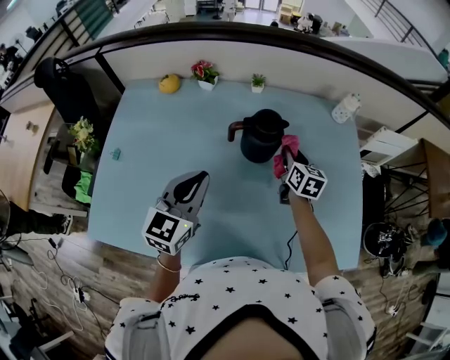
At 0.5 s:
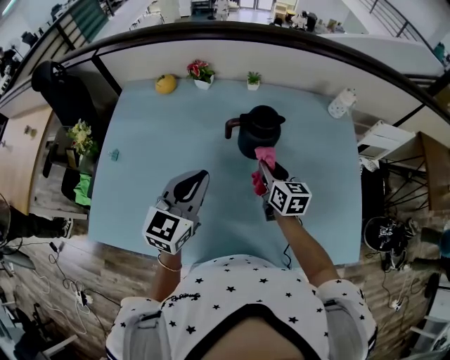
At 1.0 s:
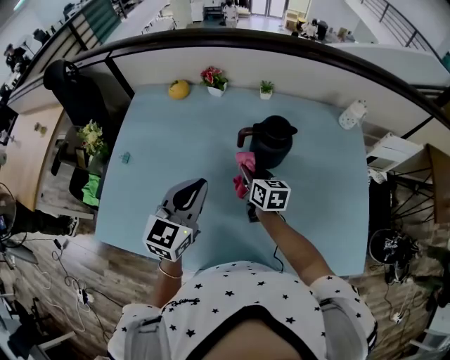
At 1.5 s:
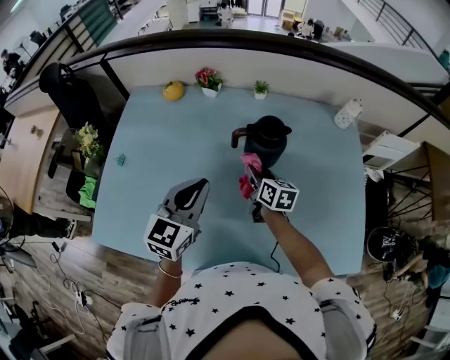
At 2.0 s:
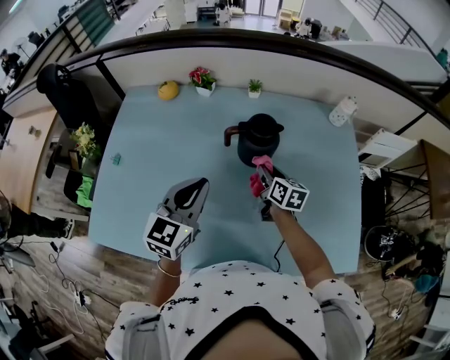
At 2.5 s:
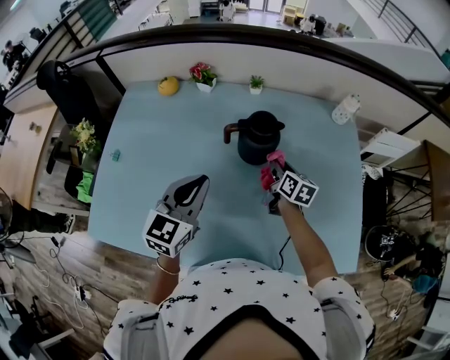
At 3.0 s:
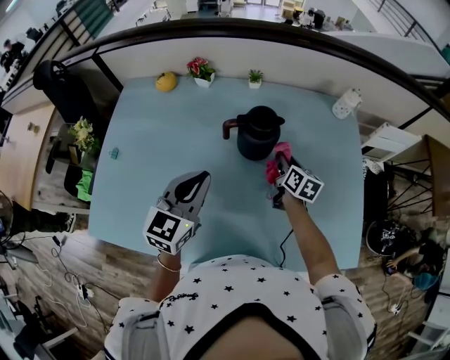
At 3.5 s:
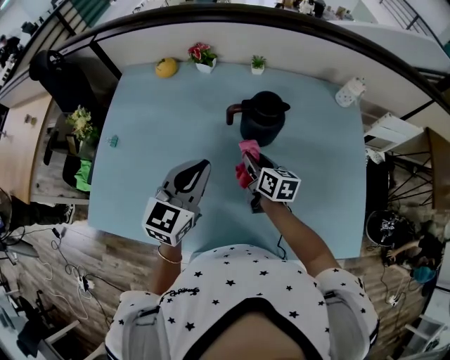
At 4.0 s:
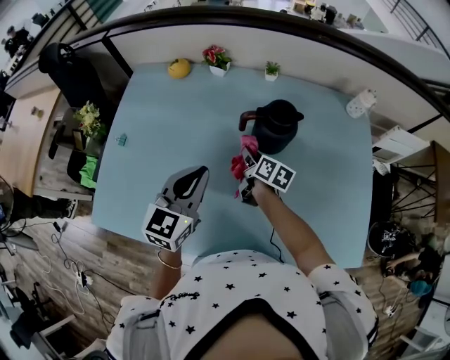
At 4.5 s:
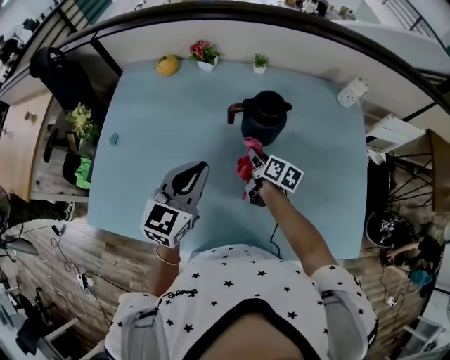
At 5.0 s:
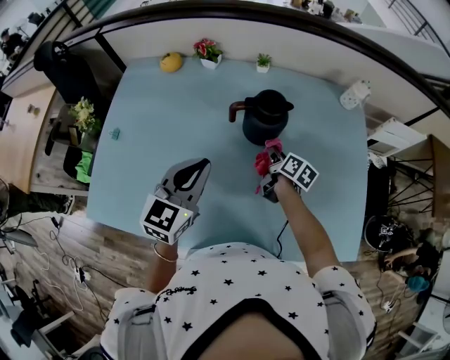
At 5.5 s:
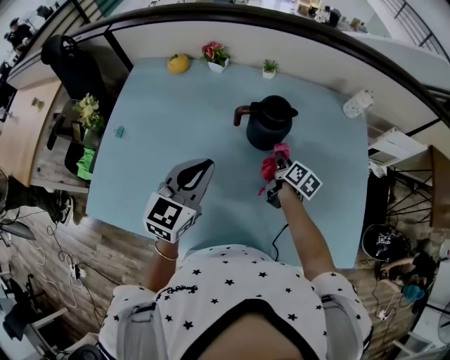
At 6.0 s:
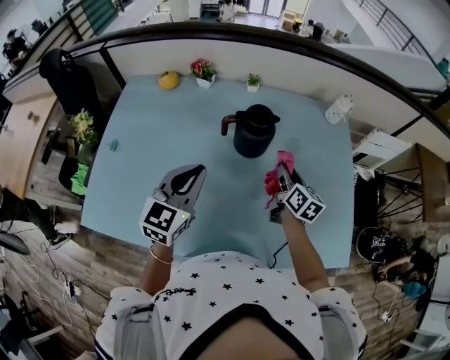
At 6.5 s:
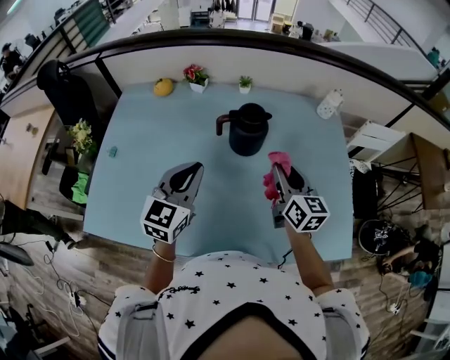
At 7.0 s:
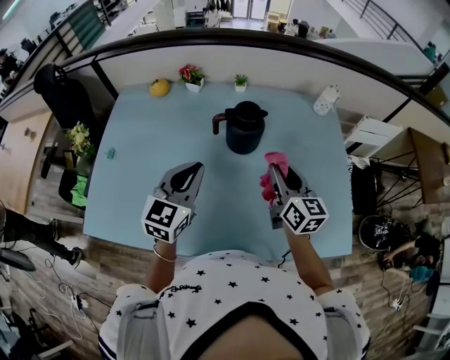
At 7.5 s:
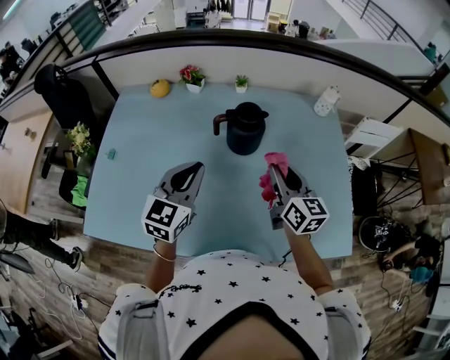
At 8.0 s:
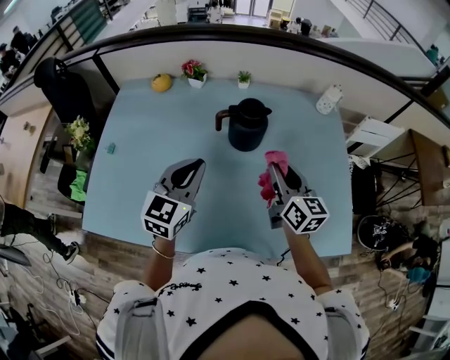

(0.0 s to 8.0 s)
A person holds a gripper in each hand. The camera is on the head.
0.0 s - 2.0 s: The right gripper travels to the left by approximately 5 cm.
2.0 s - 4.0 s: The right gripper shifts about 10 cm to the left.
4.0 s - 6.0 s: The right gripper heads to the right and upward, covering roughly 20 cm, and swivels about 20 degrees.
6.0 s - 8.0 s: The right gripper shifts some 10 cm upward and backward.

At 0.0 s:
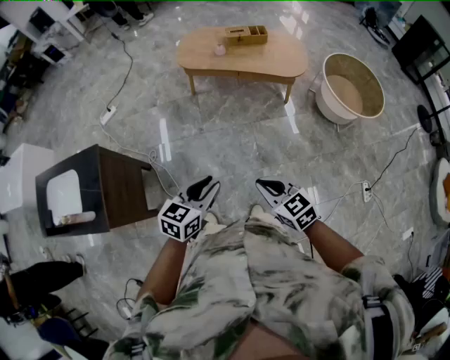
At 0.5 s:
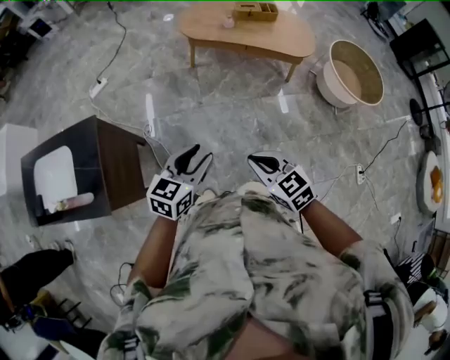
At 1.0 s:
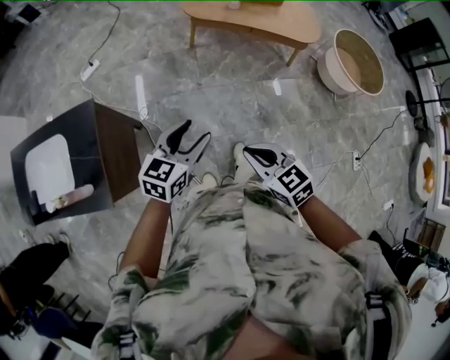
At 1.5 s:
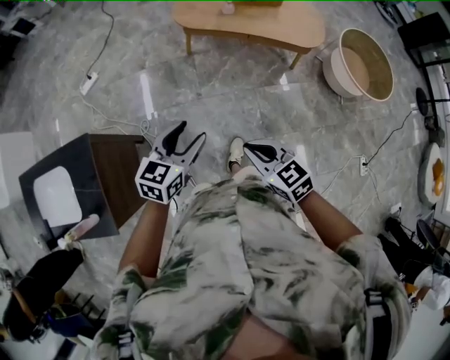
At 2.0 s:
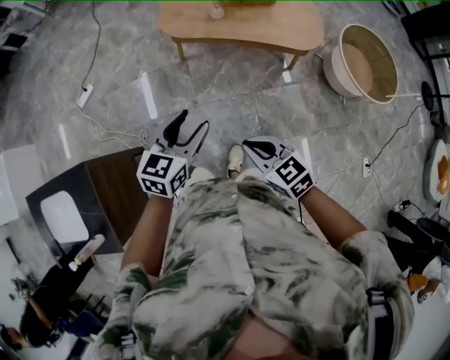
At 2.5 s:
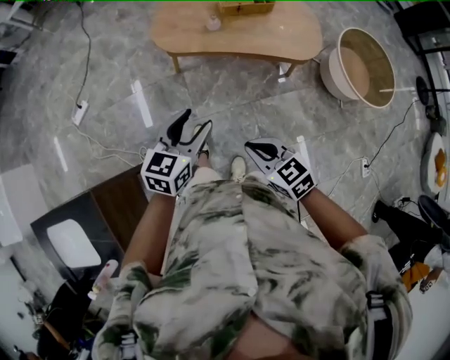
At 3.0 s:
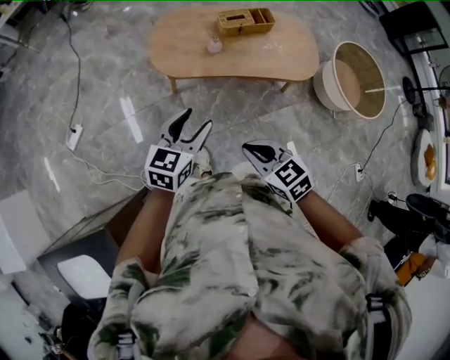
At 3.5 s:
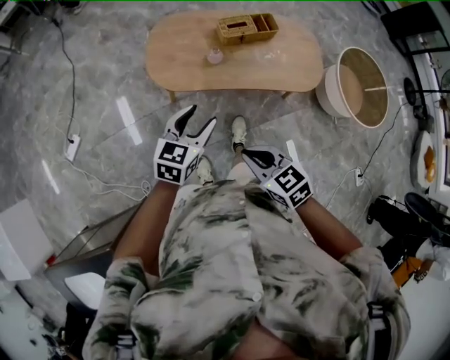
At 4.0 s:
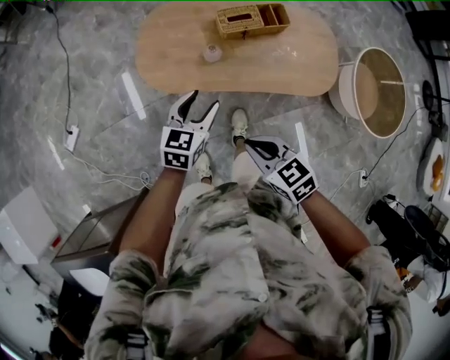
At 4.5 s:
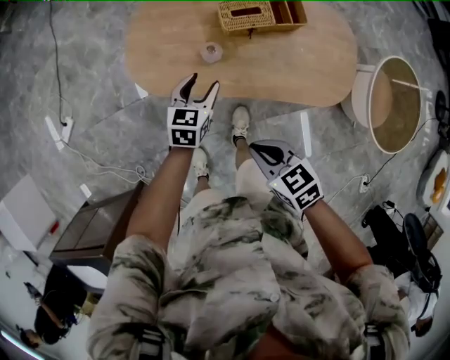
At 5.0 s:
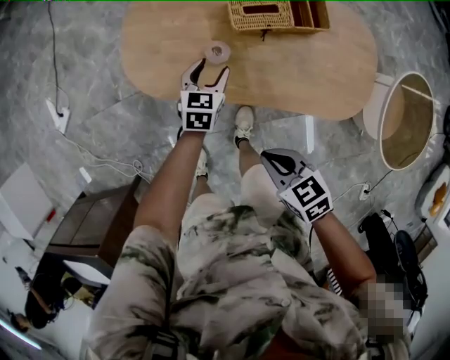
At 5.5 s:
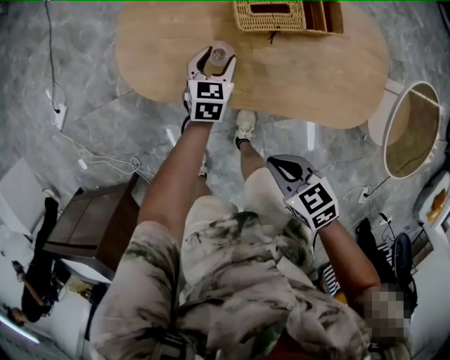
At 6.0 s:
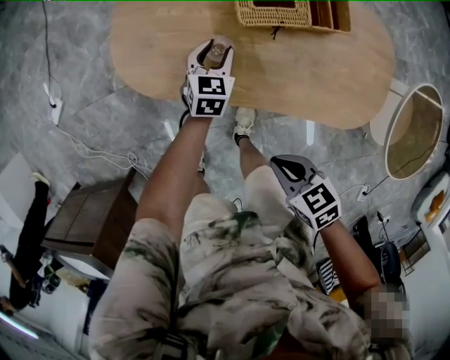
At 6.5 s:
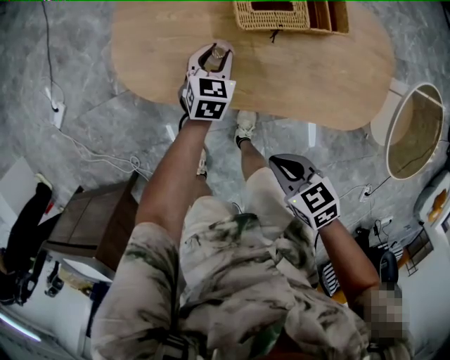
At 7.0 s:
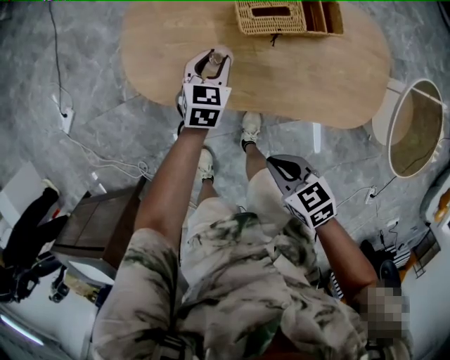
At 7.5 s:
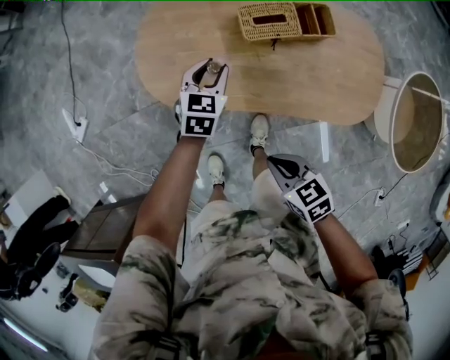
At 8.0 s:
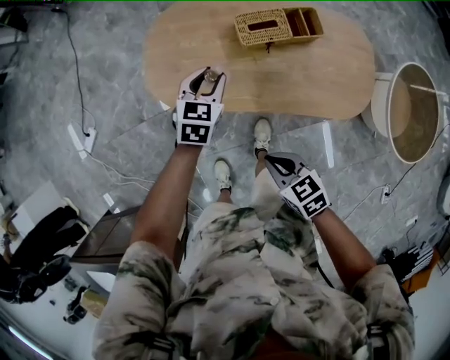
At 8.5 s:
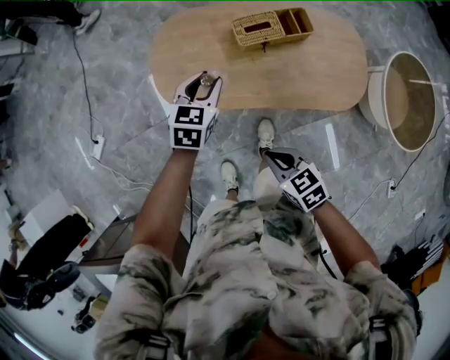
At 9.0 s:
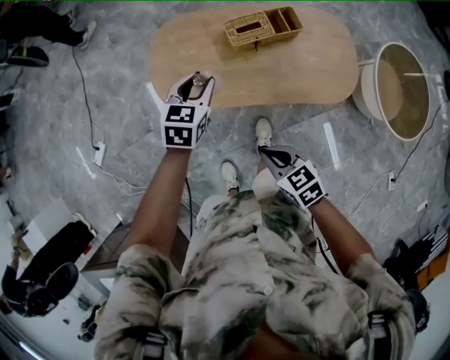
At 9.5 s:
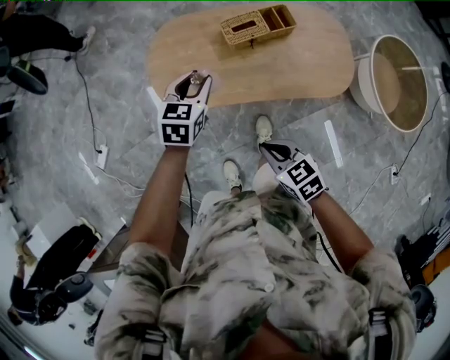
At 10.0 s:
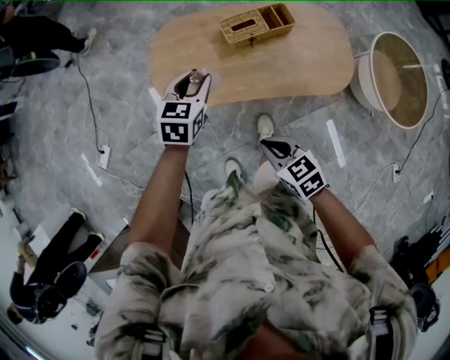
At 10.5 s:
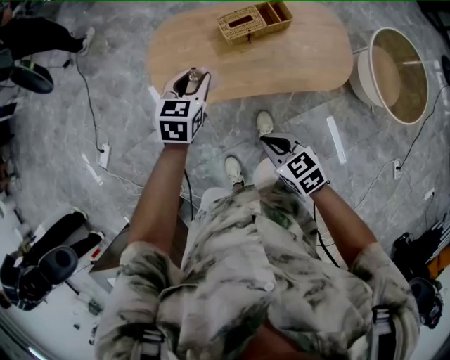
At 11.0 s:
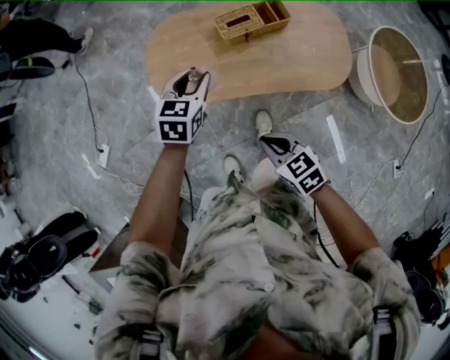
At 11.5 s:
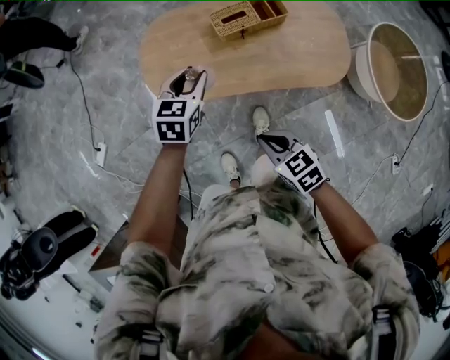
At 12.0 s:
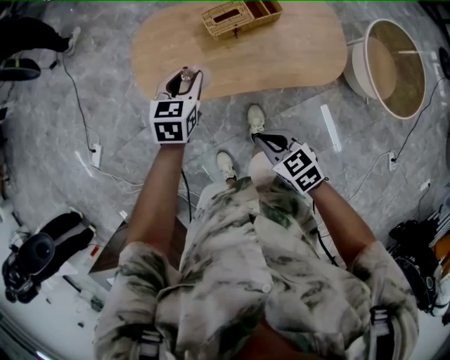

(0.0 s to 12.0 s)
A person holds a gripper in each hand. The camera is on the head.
0.0 s - 2.0 s: The two grippers go roughly 40 cm forward. The left gripper opens up.
2.0 s - 4.0 s: The pair of grippers is taken forward, roughly 50 cm.
4.0 s - 6.0 s: The left gripper moves downward, forward and to the right, some 40 cm. The right gripper heads downward and to the right, covering some 30 cm, and turns by some 20 degrees.
6.0 s - 8.0 s: The right gripper moves upward and to the left, roughly 15 cm. Meanwhile the left gripper shifts about 20 cm upward.
8.0 s - 10.0 s: The grippers both shift upward and backward by about 15 cm.
10.0 s - 12.0 s: The right gripper changes place by roughly 5 cm. The left gripper ends up about 5 cm from where it was.

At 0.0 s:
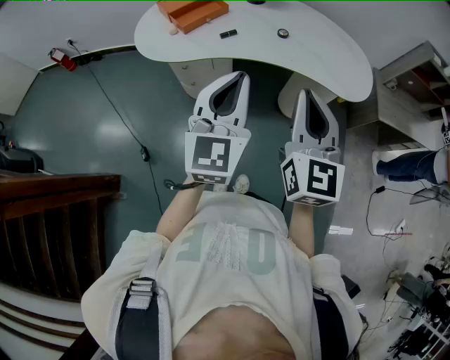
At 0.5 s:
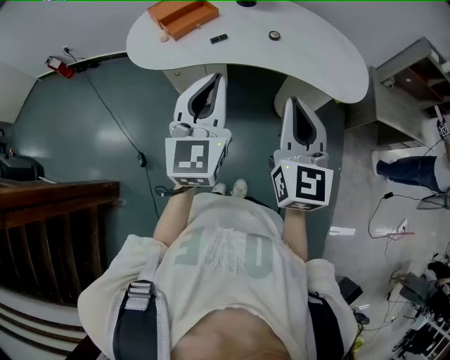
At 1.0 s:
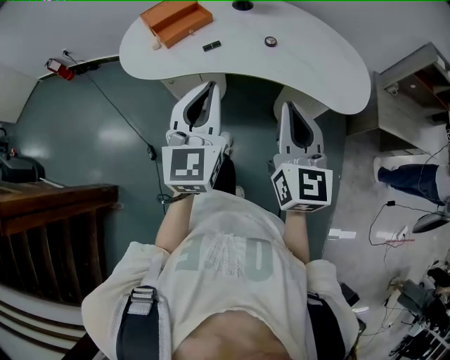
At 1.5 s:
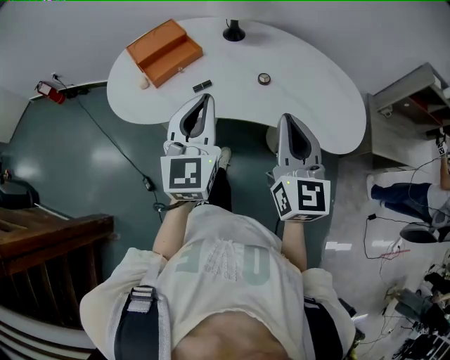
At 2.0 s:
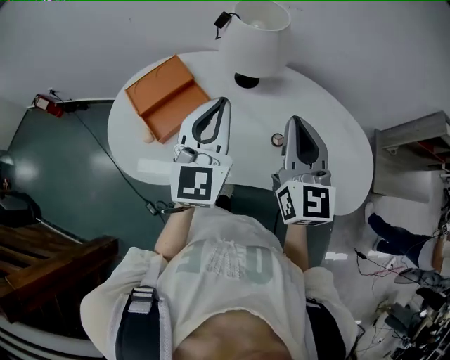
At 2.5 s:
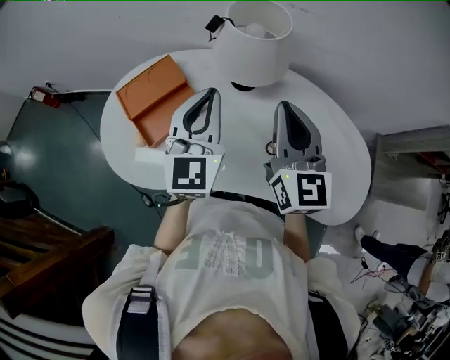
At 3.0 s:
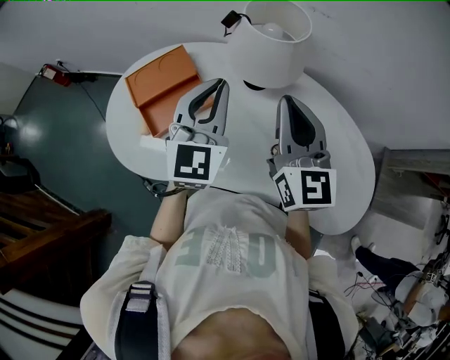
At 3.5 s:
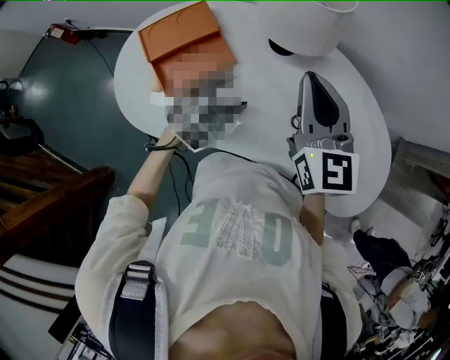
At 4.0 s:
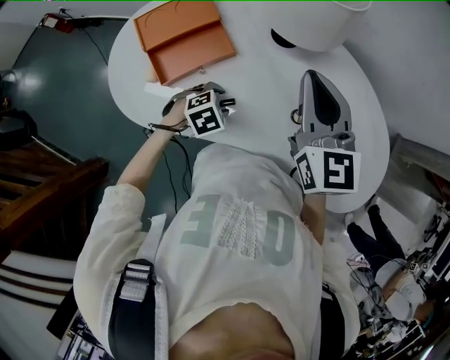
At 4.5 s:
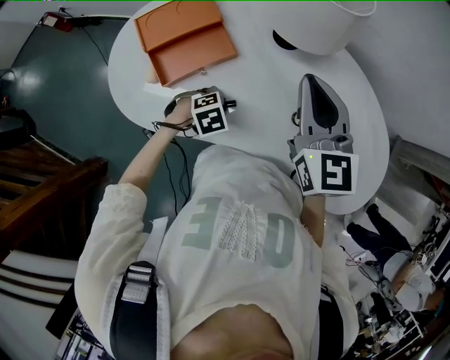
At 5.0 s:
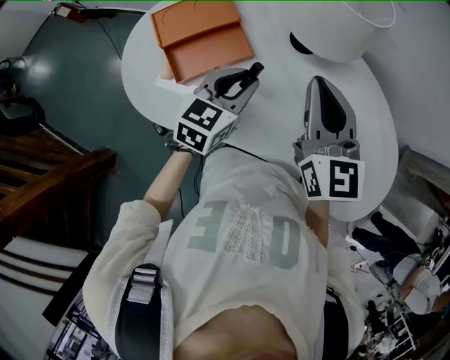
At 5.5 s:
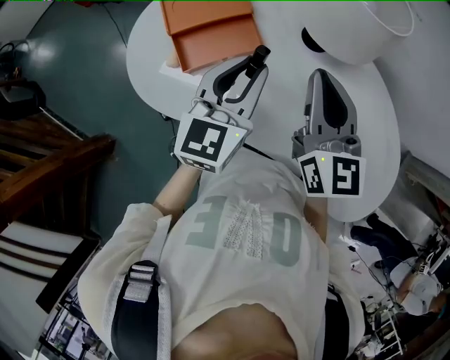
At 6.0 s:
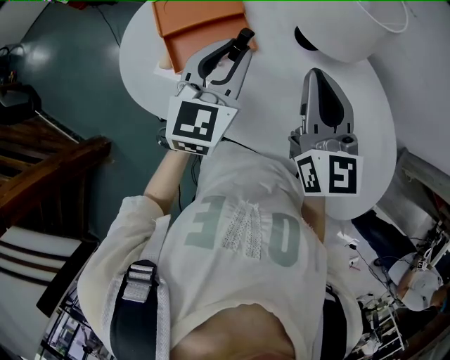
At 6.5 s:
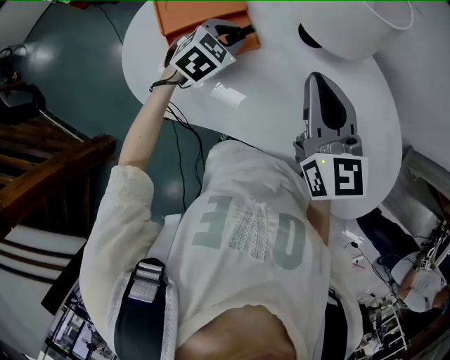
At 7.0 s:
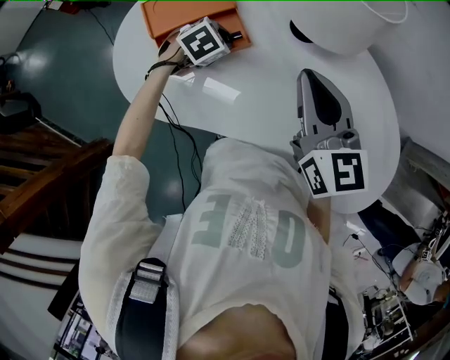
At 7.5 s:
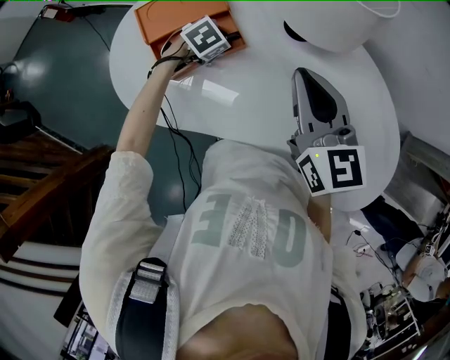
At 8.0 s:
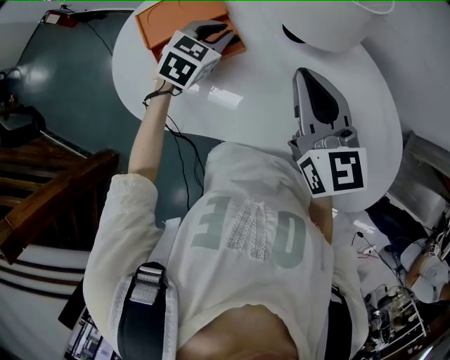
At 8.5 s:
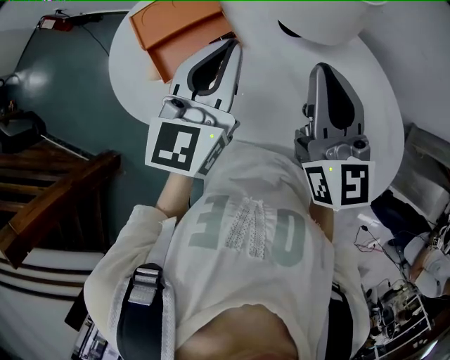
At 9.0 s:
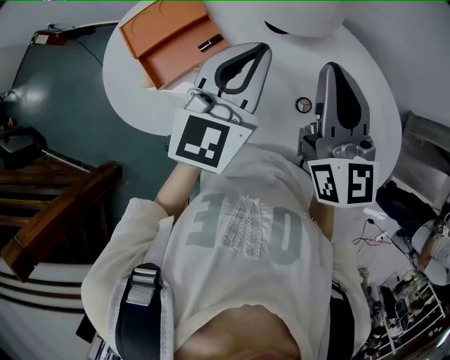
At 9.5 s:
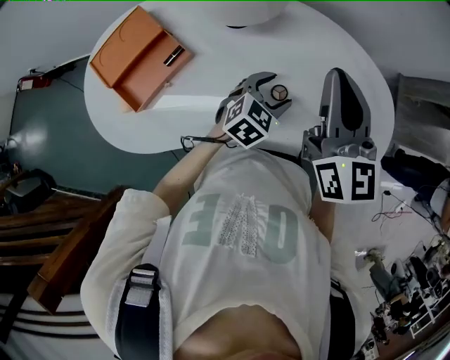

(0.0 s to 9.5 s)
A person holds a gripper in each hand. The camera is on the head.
0.0 s - 2.0 s: The pair of grippers is taken forward, some 40 cm.
2.0 s - 4.0 s: The right gripper shifts approximately 10 cm forward, to the left and downward, and changes its angle by roughly 20 degrees. Meanwhile the left gripper shifts approximately 35 cm downward, tilts its fingers some 70 degrees downward, and opens up.
4.0 s - 5.5 s: The left gripper goes roughly 25 cm upward, tips its fingers upward by roughly 60 degrees, and closes its fingers.
5.5 s - 7.5 s: The left gripper is displaced downward and forward by approximately 25 cm, and points its fingers approximately 50 degrees further downward.
7.5 s - 9.5 s: The right gripper moves some 20 cm, and swivels about 30 degrees. The left gripper reaches some 30 cm upward, then returns, changes its angle by about 30 degrees, and opens its fingers.
